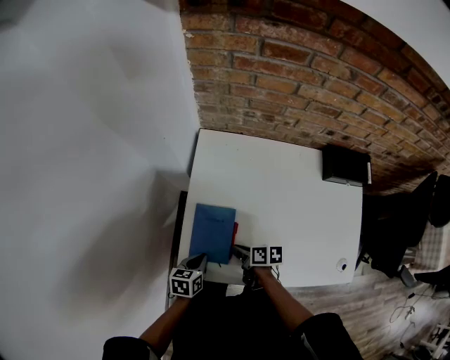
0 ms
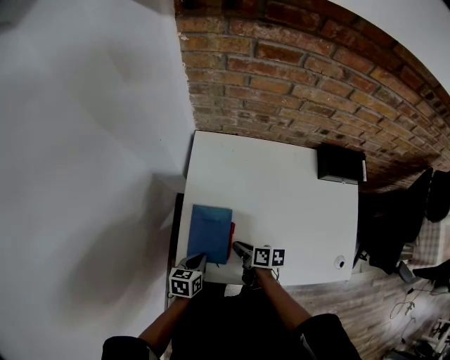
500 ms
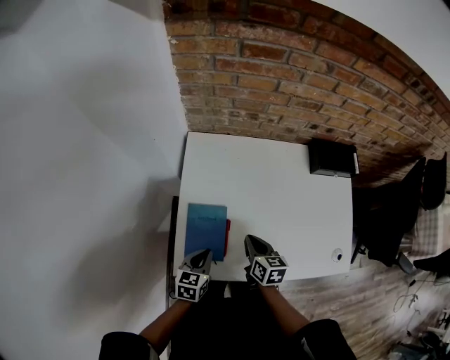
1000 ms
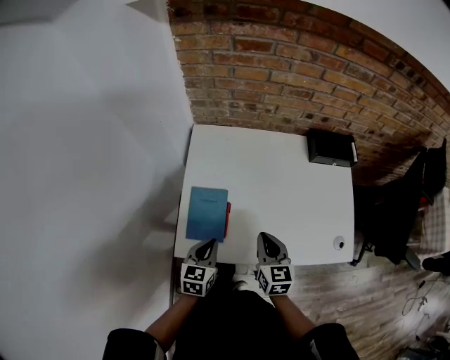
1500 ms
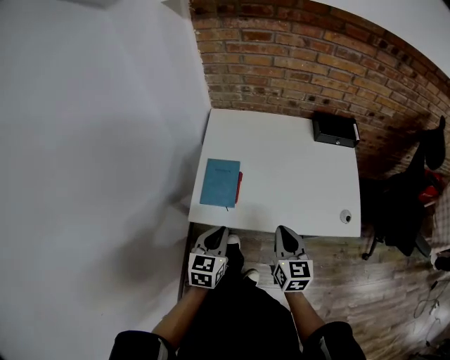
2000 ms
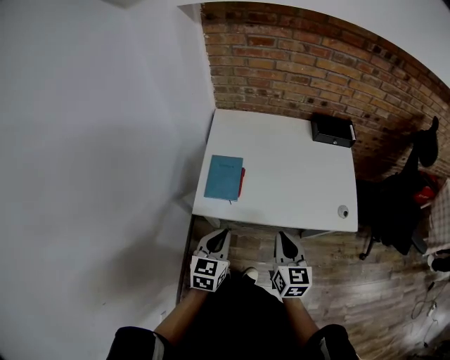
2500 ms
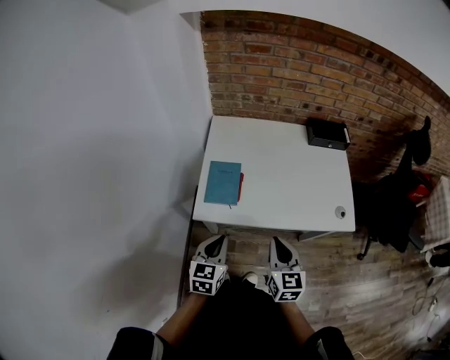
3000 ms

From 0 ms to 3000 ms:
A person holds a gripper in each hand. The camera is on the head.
From 0 ms to 1500 ms: The left gripper shifts about 10 cm upward and to the right, and changes its angle by some 30 degrees; the right gripper goes approximately 20 cm upward and to the right, and swivels some 60 degrees.
From 1500 ms to 3000 ms: The right gripper moves backward, about 20 cm; the left gripper goes approximately 20 cm backward and upward.

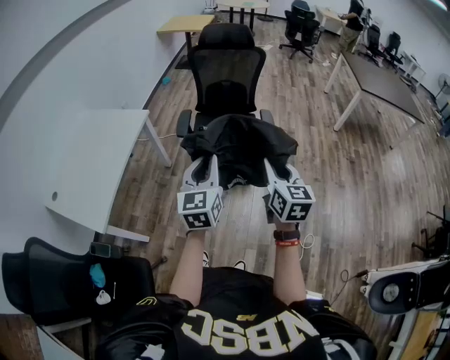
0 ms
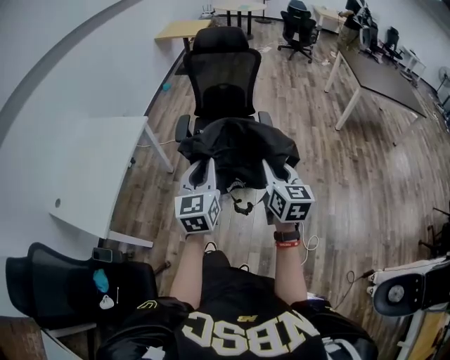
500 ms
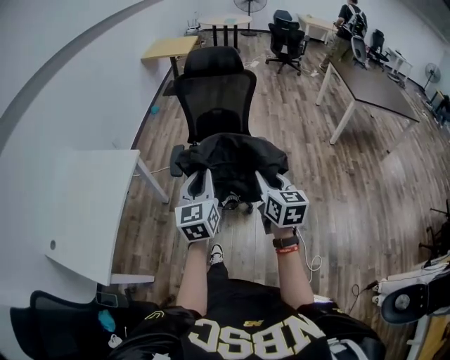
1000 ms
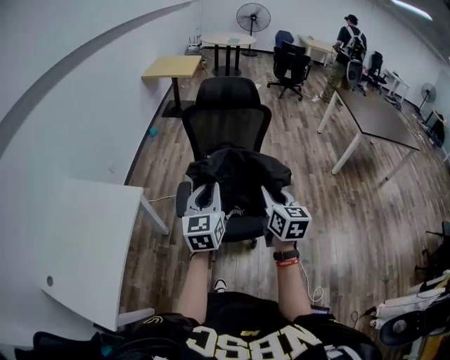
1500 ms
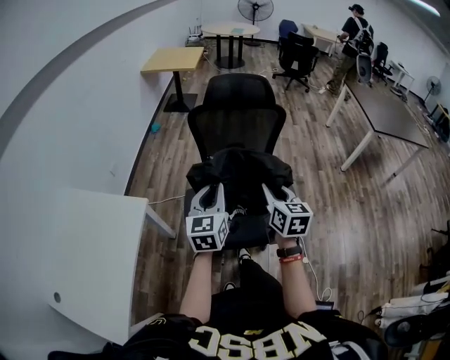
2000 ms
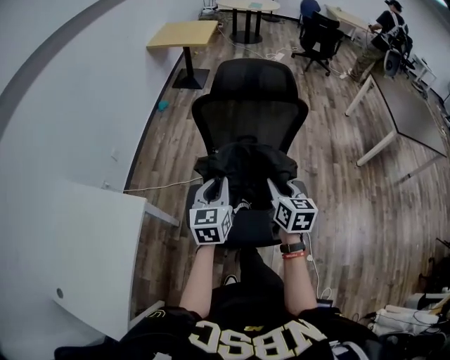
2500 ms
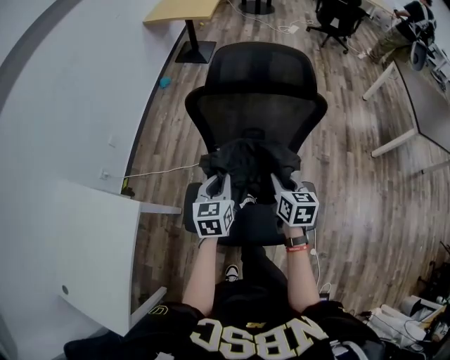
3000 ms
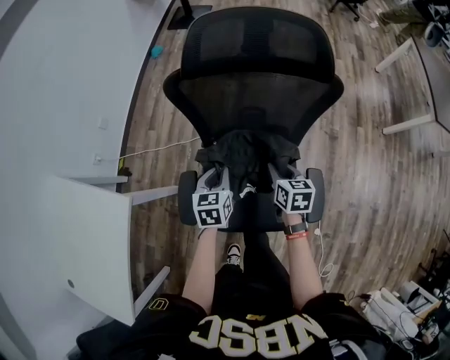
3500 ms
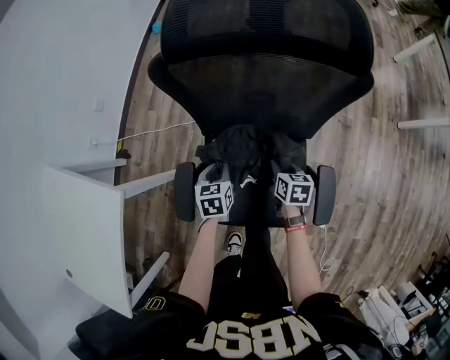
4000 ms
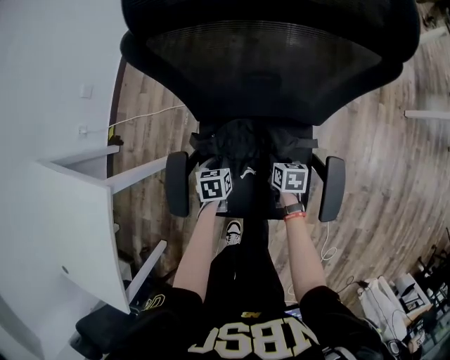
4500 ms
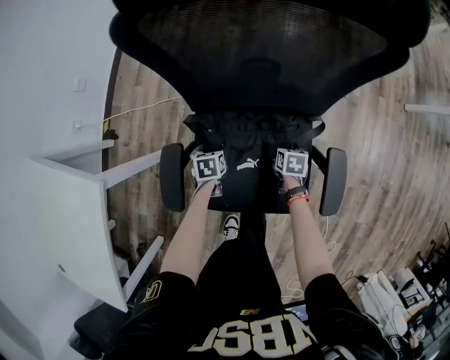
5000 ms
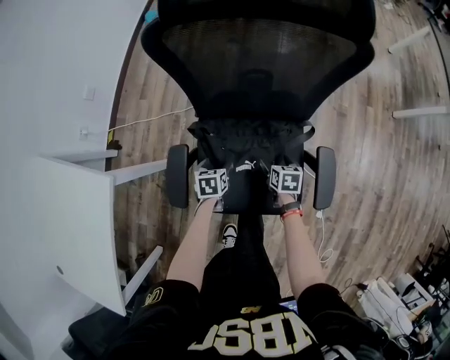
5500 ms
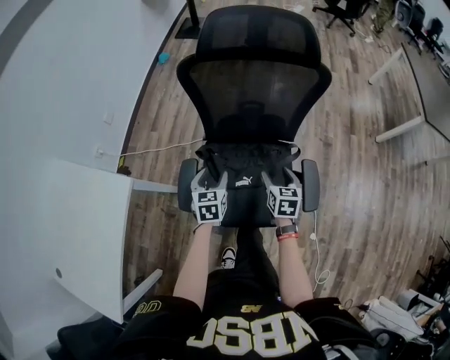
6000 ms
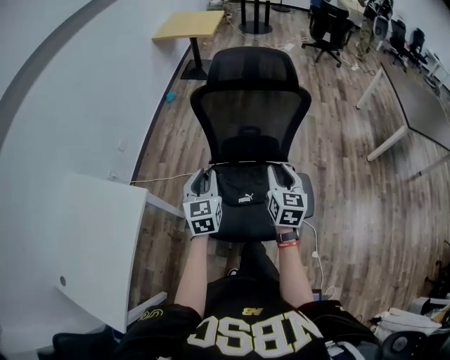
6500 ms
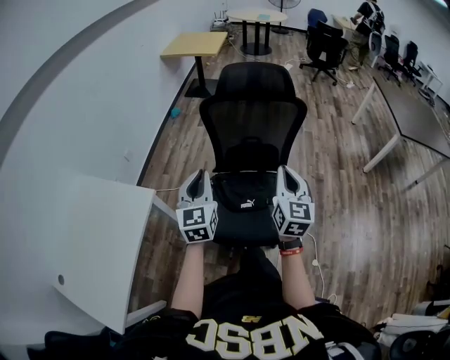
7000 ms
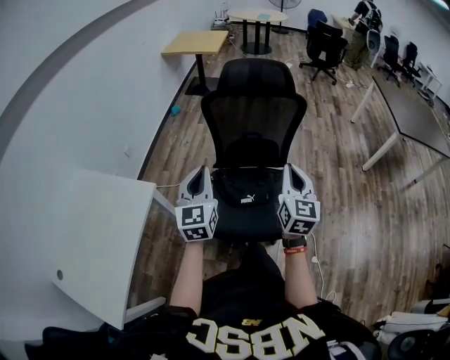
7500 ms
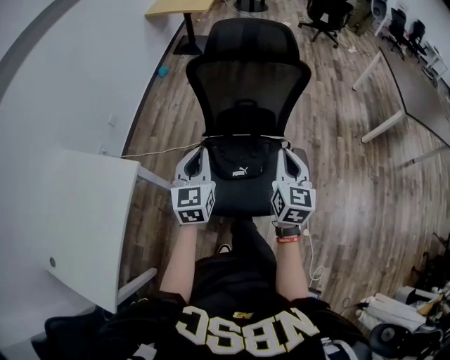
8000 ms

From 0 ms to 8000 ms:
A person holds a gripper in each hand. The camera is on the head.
From 0 ms to 2000 ms: Both grippers are carried forward, roughly 40 cm.
From 2000 ms to 4000 ms: The two grippers go approximately 50 cm downward and forward. The right gripper angles its fingers downward, by approximately 30 degrees; the left gripper tilts its fingers some 40 degrees downward.
From 4000 ms to 6000 ms: The right gripper goes roughly 10 cm upward and backward, and opens. The left gripper heads backward, covering approximately 5 cm, moves about 20 cm downward and comes back, and opens.
From 6000 ms to 8000 ms: The grippers both shift upward by approximately 25 cm. The right gripper tilts its fingers roughly 30 degrees upward, and closes up. The left gripper turns by roughly 30 degrees, and closes up.

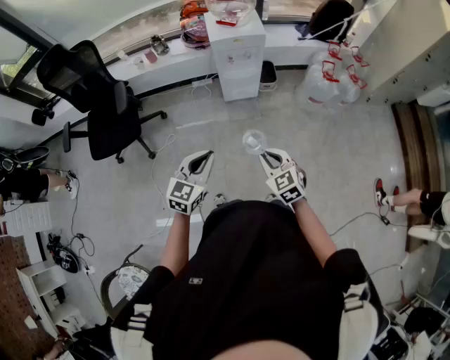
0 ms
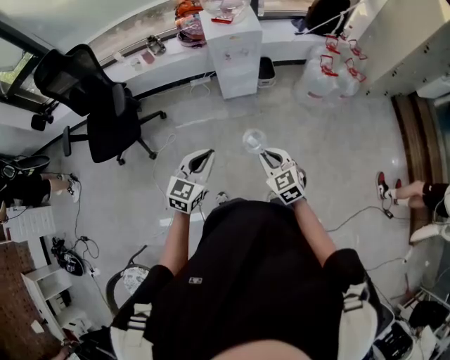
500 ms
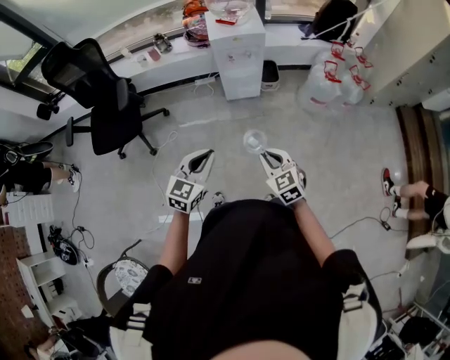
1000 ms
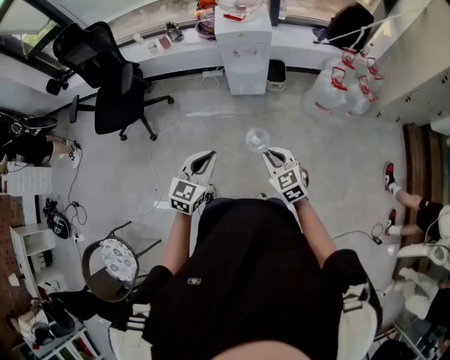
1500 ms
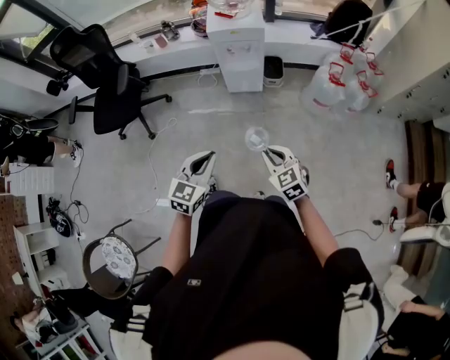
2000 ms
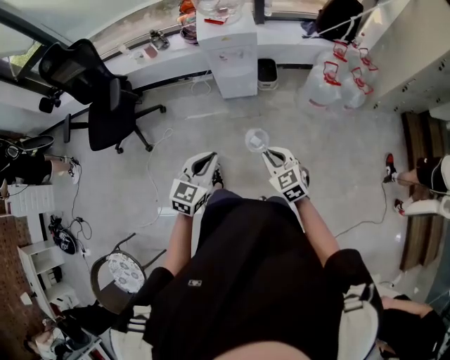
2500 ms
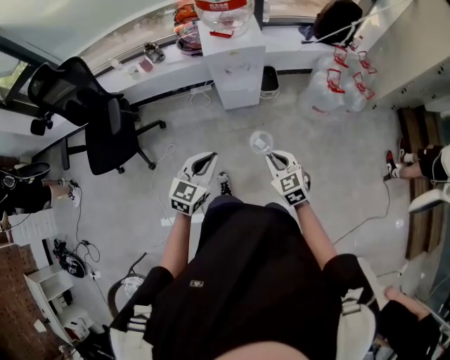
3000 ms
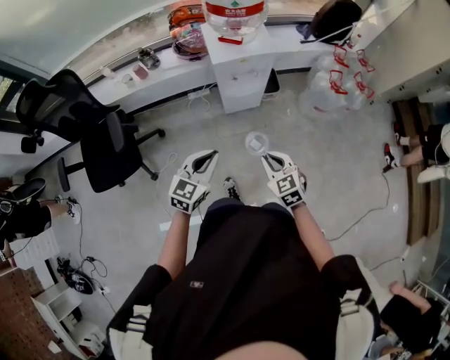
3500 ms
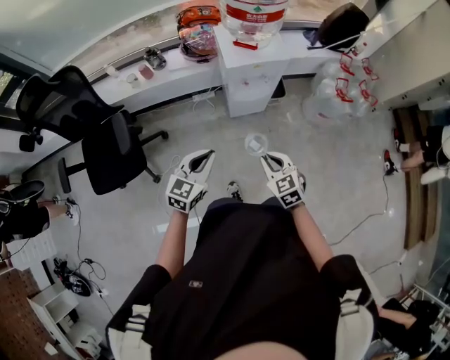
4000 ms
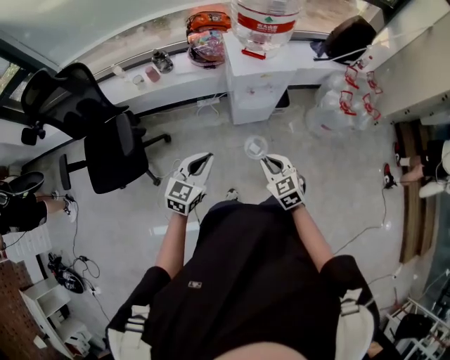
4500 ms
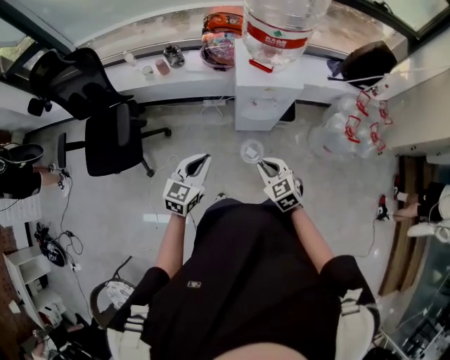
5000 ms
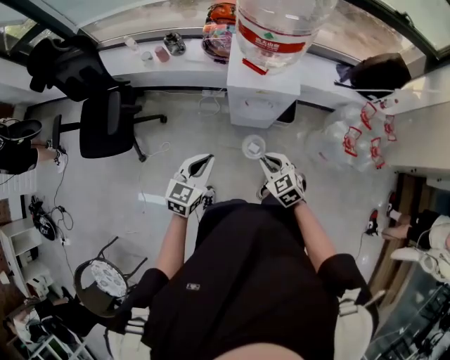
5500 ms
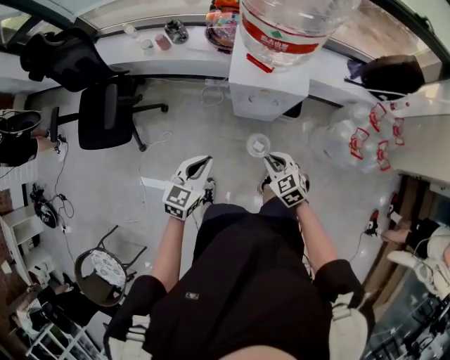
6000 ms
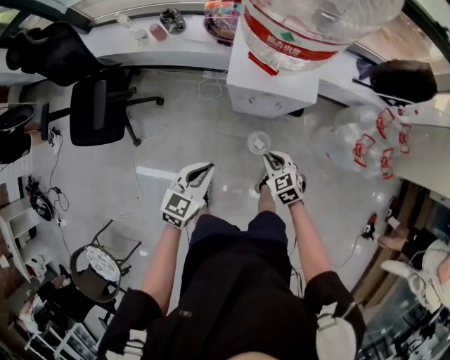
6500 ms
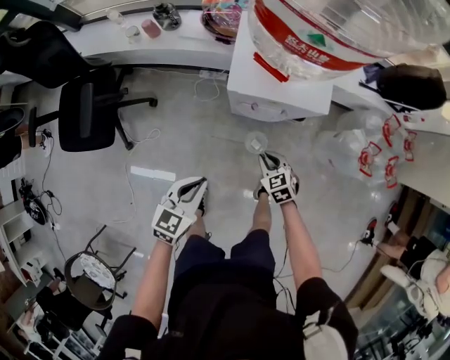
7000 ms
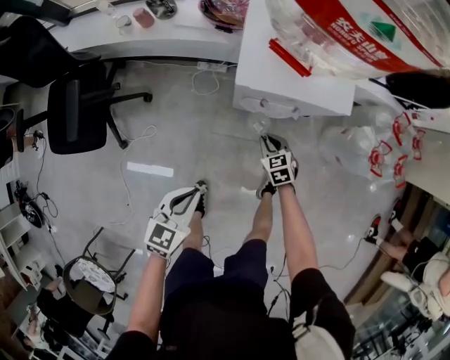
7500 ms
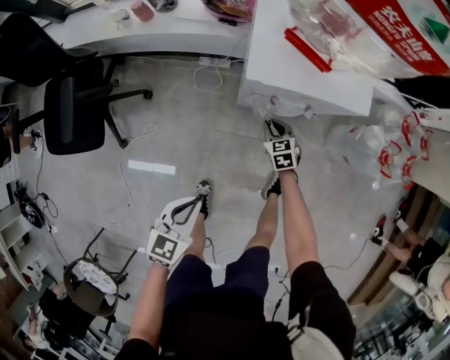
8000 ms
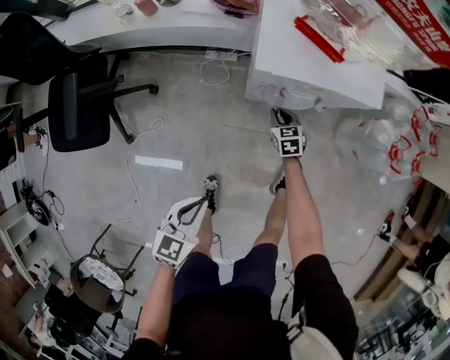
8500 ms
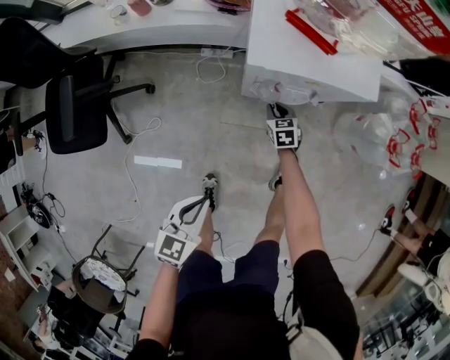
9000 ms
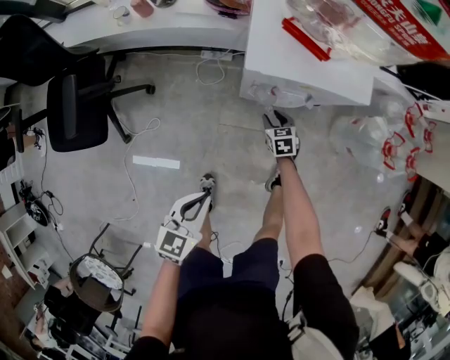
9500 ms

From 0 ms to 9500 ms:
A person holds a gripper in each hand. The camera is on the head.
From 0 ms to 2000 ms: The two grippers go approximately 15 cm to the right.
From 2000 ms to 4000 ms: The left gripper heads forward and to the left, covering about 40 cm, while the right gripper shifts approximately 35 cm to the left and forward.
From 4000 ms to 5500 ms: The right gripper shifts approximately 20 cm forward and to the right, and swivels about 30 degrees, while the left gripper moves to the right and forward, about 15 cm, and changes its angle by approximately 20 degrees.
From 5500 ms to 7500 ms: The right gripper moves downward and forward, roughly 35 cm. Meanwhile the left gripper heads downward, covering about 20 cm.
From 7500 ms to 9500 ms: The right gripper is displaced downward by some 10 cm, and opens.

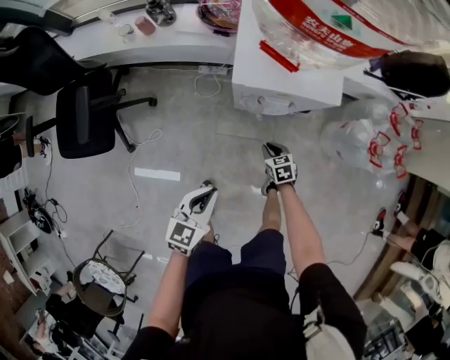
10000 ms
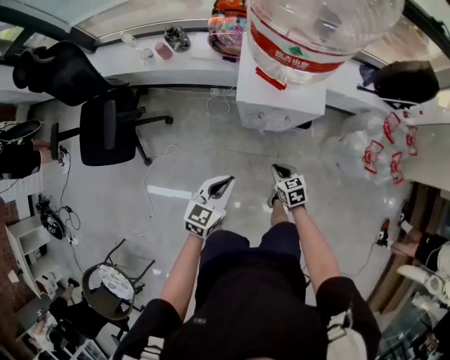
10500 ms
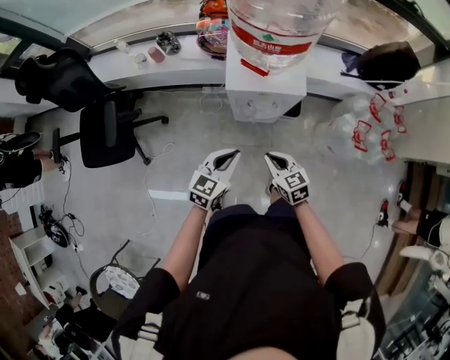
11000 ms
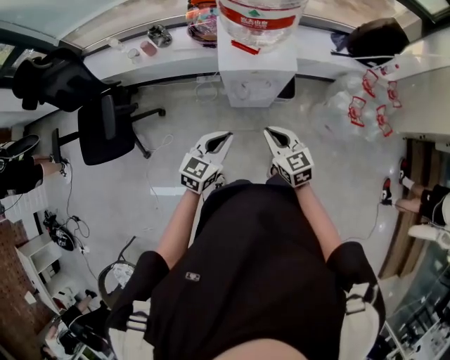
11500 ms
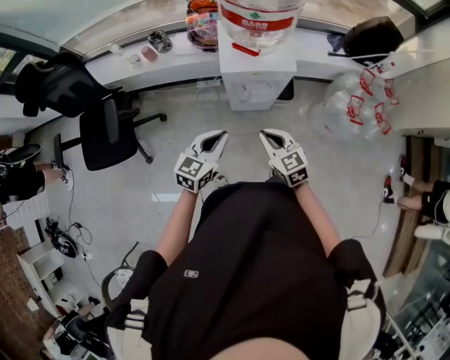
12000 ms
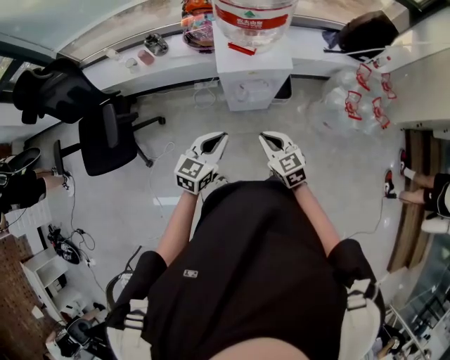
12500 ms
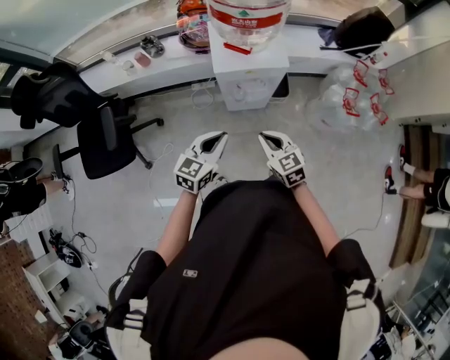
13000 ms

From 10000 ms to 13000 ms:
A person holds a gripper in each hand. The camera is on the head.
From 10000 ms to 11500 ms: The right gripper travels upward by roughly 40 cm, and rotates about 30 degrees. Meanwhile the left gripper heads upward, covering some 15 cm.
From 11500 ms to 13000 ms: The grippers make only small movements.

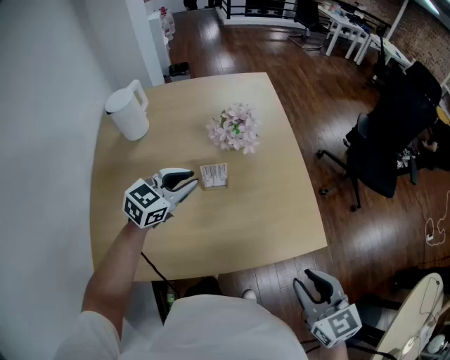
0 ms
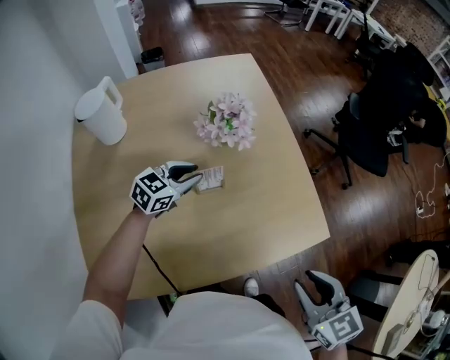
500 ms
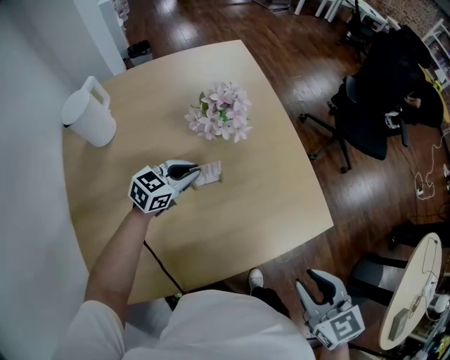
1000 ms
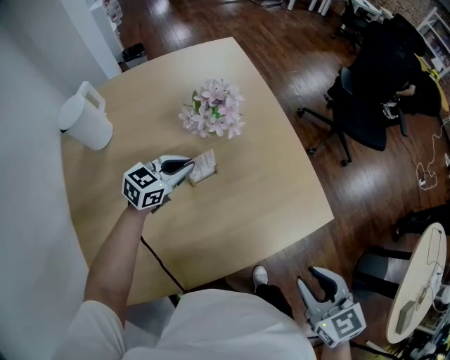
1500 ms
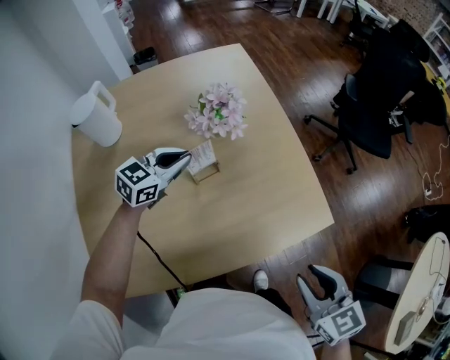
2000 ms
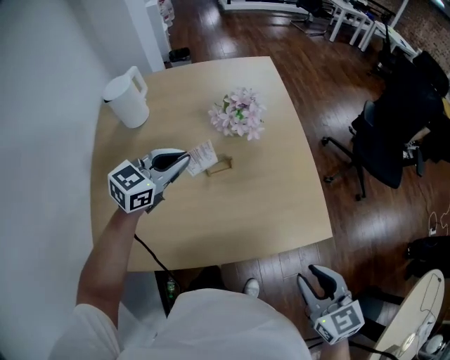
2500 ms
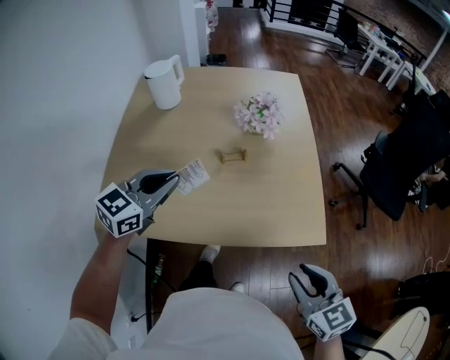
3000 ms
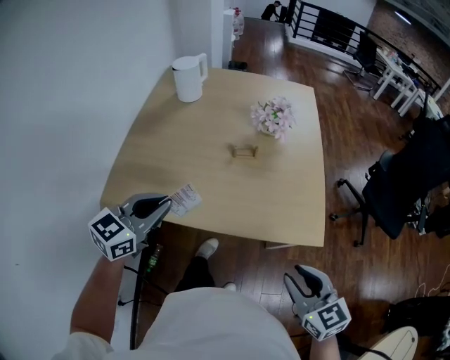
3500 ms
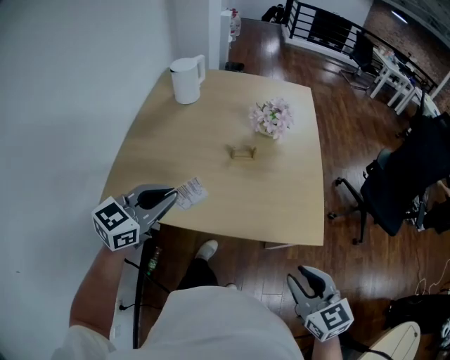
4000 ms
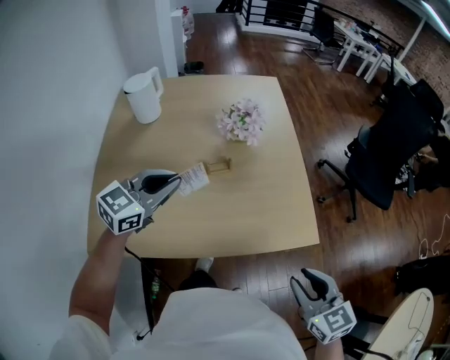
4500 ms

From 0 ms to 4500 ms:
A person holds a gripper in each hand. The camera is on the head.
From 0 ms to 2000 ms: The left gripper shifts roughly 10 cm forward, and goes downward and returns, some 10 cm each way.
From 2000 ms to 4500 ms: The right gripper moves roughly 5 cm.
